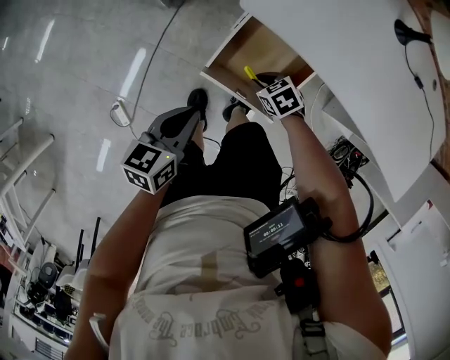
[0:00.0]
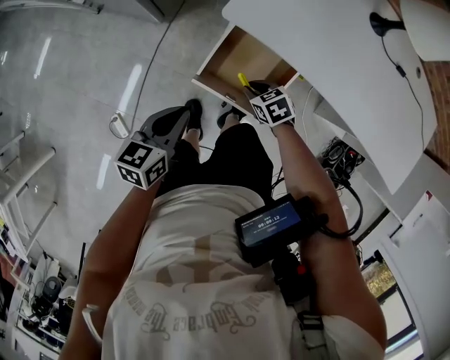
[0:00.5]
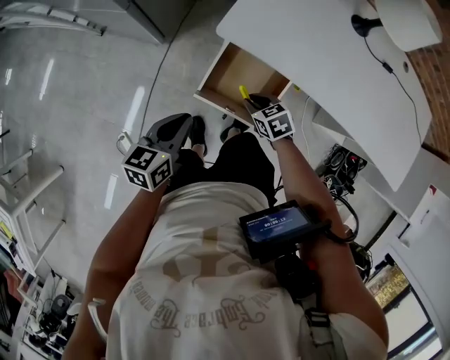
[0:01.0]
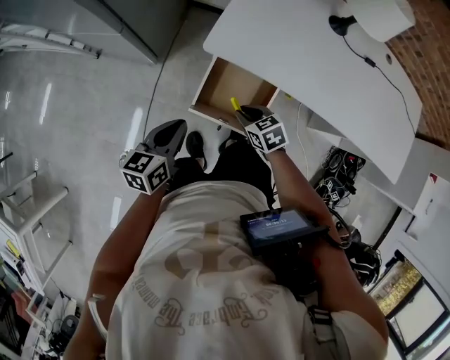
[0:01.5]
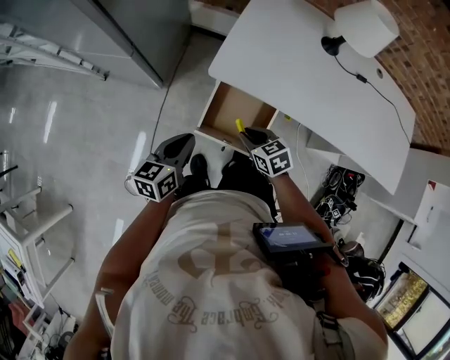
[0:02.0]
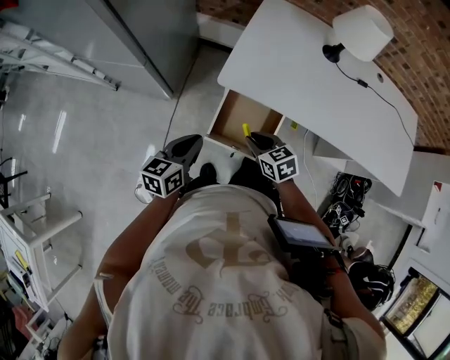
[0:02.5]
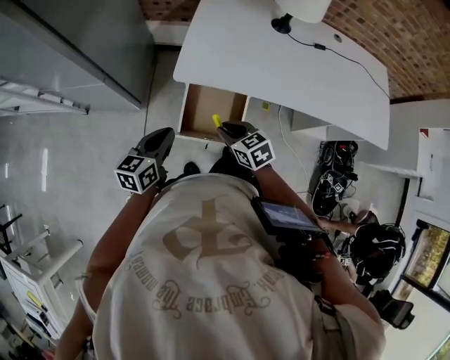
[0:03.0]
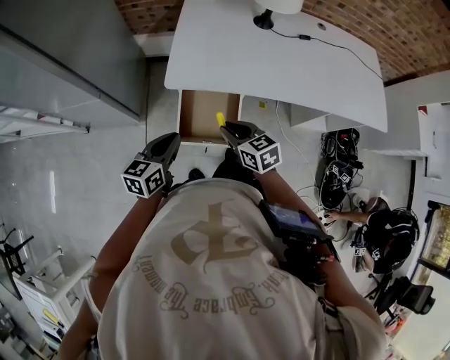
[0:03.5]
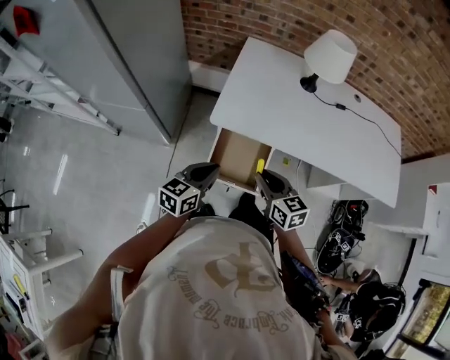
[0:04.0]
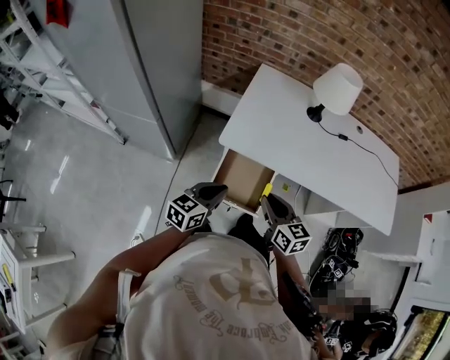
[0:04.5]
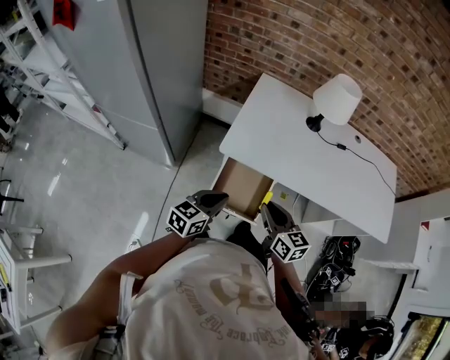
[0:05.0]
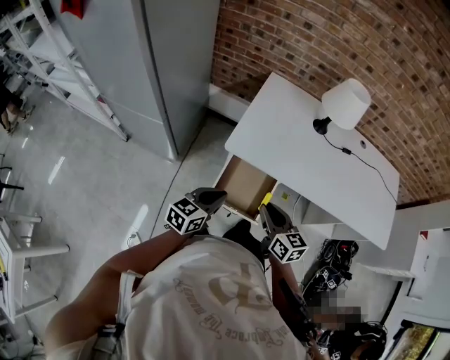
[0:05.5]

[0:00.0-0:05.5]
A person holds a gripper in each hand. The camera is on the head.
0:00.0 to 0:02.0: The left gripper is displaced upward by roughly 10 cm. Meanwhile the right gripper is displaced upward by roughly 15 cm, and rotates about 30 degrees.
0:02.0 to 0:03.5: The left gripper ends up some 5 cm from where it was, while the right gripper travels upward by roughly 10 cm, and rotates roughly 20 degrees.
0:03.5 to 0:05.5: The right gripper heads upward, covering roughly 5 cm.

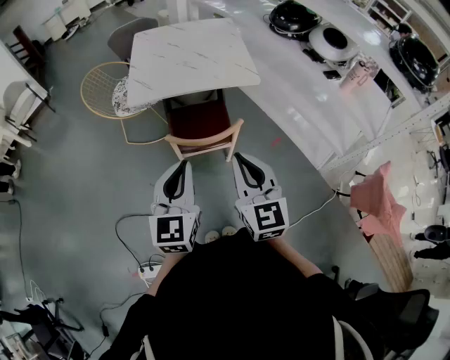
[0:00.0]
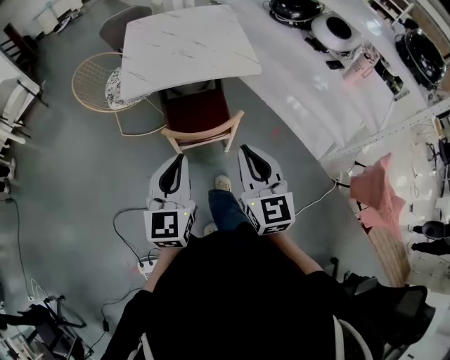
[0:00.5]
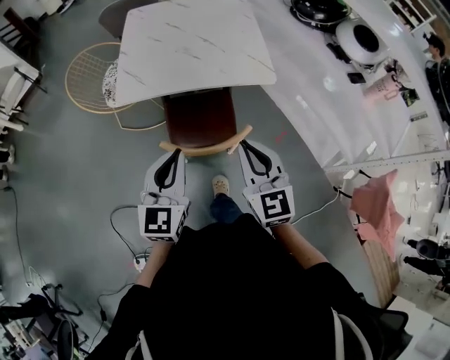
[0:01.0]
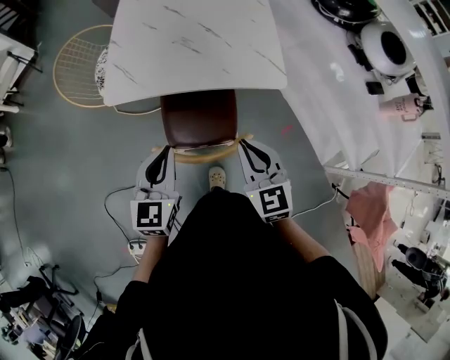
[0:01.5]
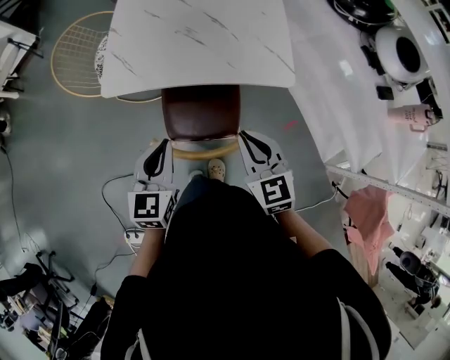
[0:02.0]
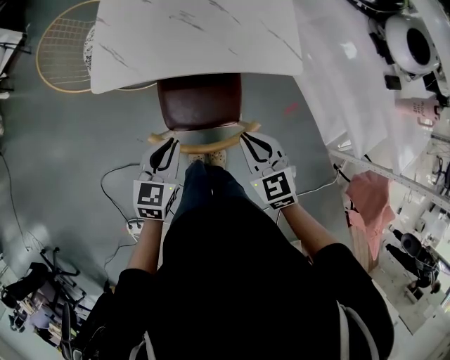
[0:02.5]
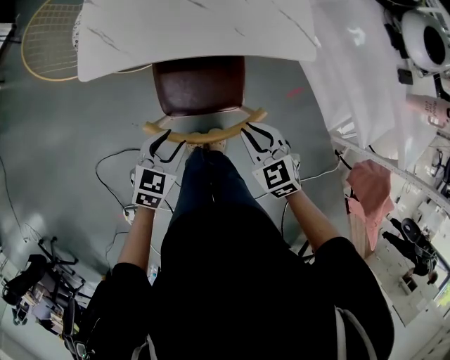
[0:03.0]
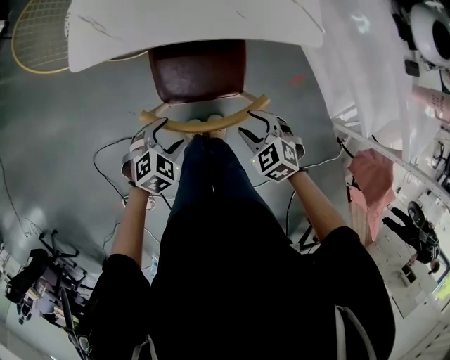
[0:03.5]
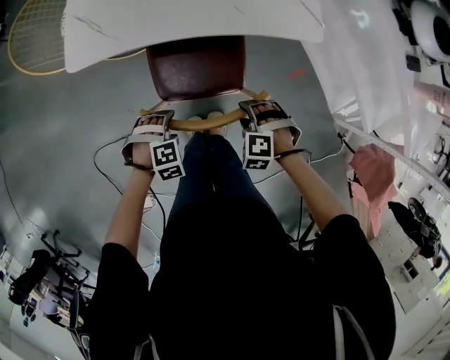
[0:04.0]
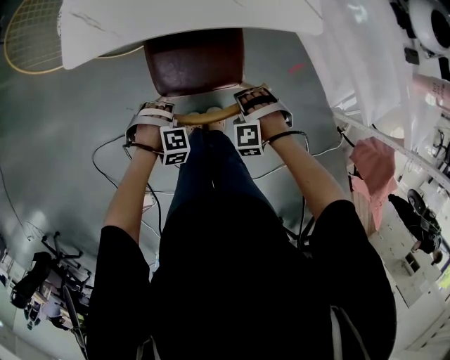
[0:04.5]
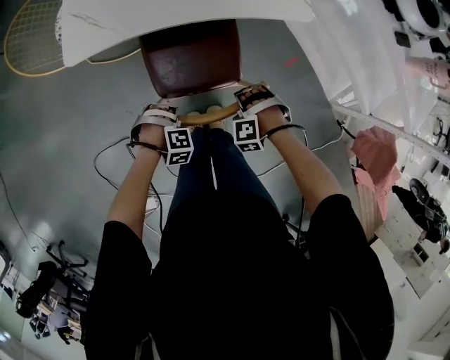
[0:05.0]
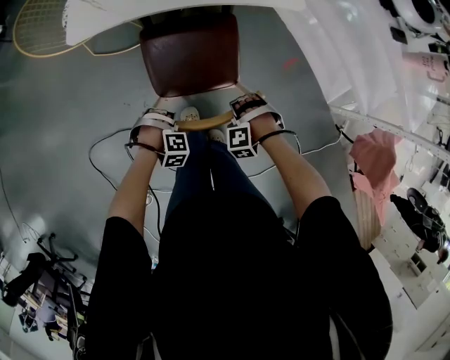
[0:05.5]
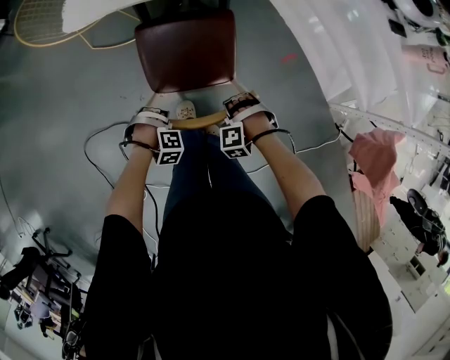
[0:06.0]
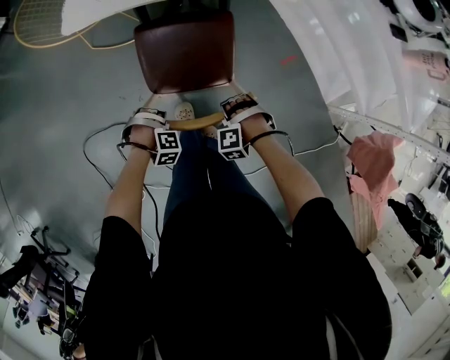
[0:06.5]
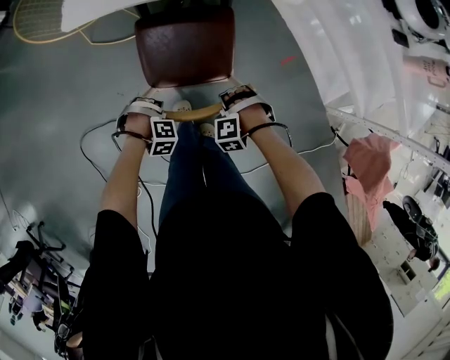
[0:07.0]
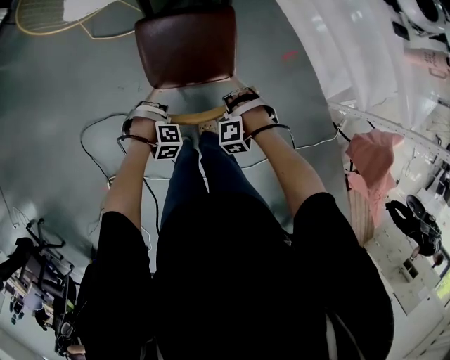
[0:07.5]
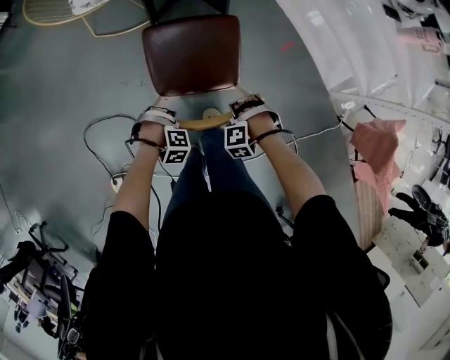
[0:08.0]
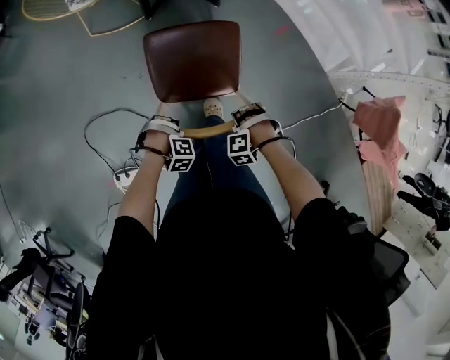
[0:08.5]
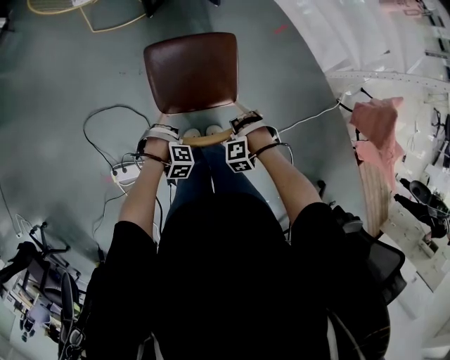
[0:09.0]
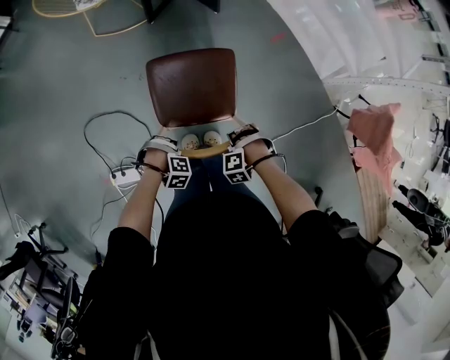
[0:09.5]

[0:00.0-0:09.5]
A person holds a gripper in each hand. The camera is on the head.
0:00.0 to 0:02.0: The two grippers go roughly 30 cm forward and downward. The right gripper turns by about 30 degrees.
0:02.0 to 0:04.0: The two grippers go roughly 30 cm downward. The left gripper tilts its fingers approximately 60 degrees downward, and opens; the right gripper angles its fingers downward, by approximately 50 degrees, and opens up.
0:04.0 to 0:05.5: The left gripper changes place by about 10 cm, turns by some 20 degrees, and closes. The right gripper changes place by roughly 10 cm, and changes its angle by roughly 20 degrees.
0:05.5 to 0:07.5: The left gripper changes place by approximately 5 cm.
0:07.5 to 0:09.5: The left gripper changes place by some 30 cm. Meanwhile the right gripper changes place by roughly 30 cm.

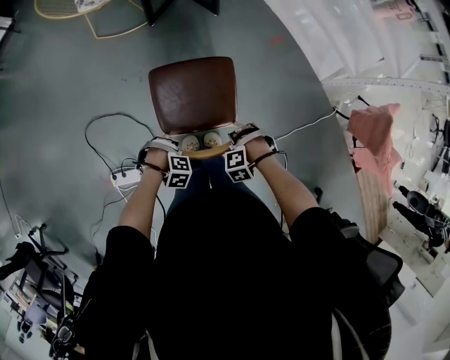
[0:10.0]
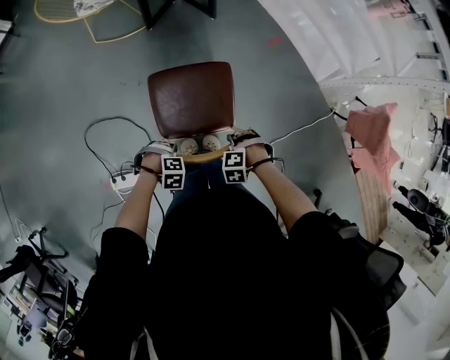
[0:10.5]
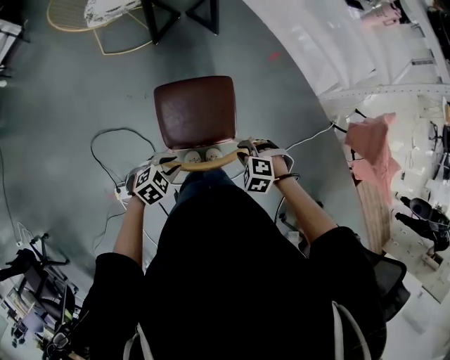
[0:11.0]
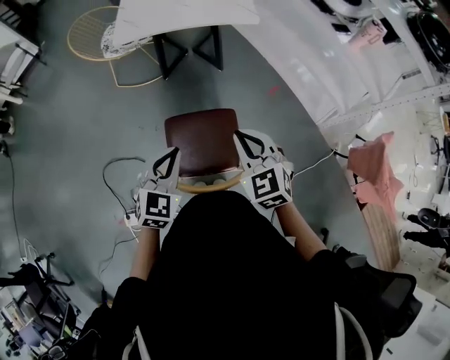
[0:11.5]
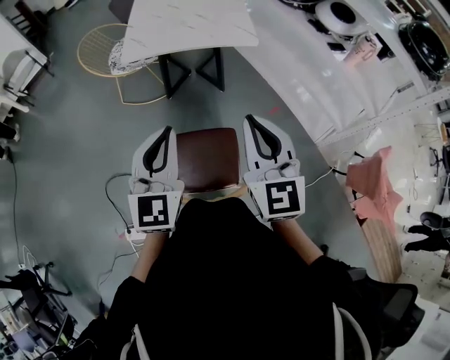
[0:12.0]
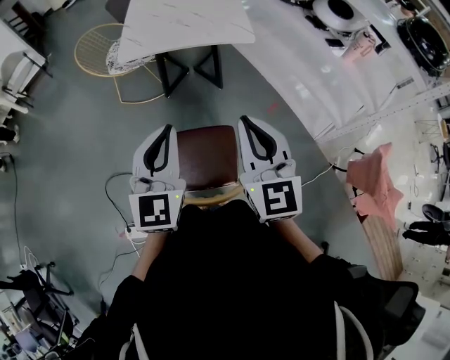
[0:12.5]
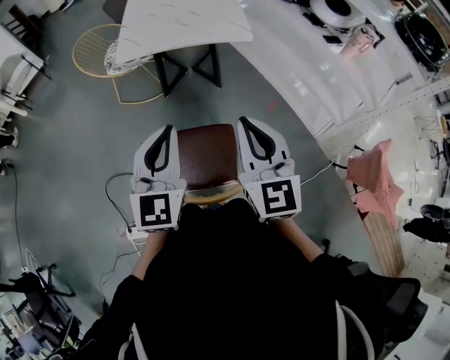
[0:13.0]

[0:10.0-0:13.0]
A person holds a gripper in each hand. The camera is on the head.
0:10.0 to 0:11.5: Both grippers move upward, approximately 35 cm. The left gripper points its fingers some 60 degrees further upward. The right gripper tips its fingers upward by some 60 degrees, and closes its fingers.
0:11.5 to 0:13.0: The grippers both shift upward by some 15 cm. The right gripper turns by approximately 30 degrees; the left gripper swivels approximately 30 degrees.

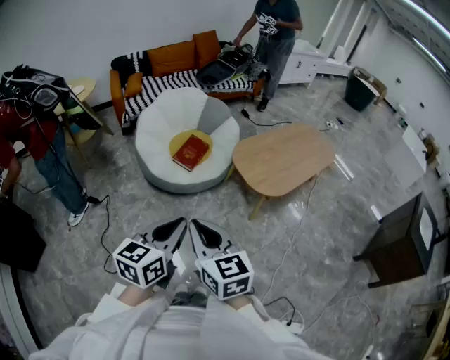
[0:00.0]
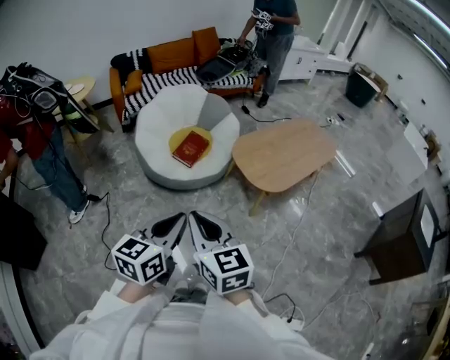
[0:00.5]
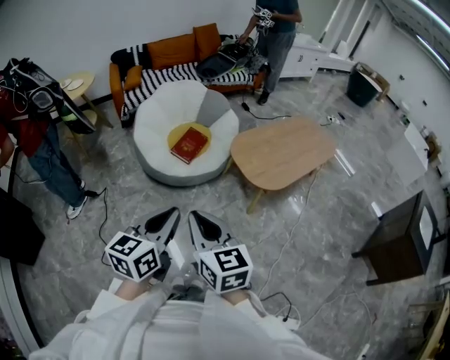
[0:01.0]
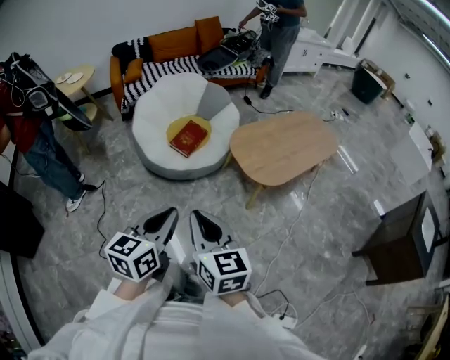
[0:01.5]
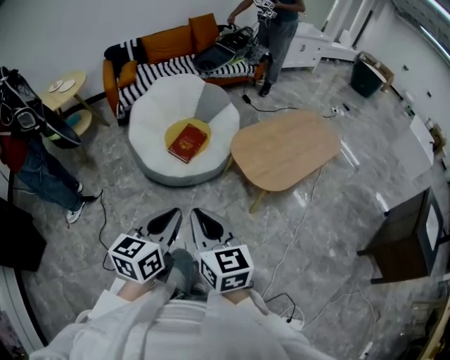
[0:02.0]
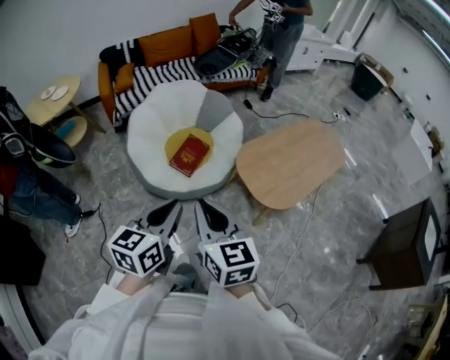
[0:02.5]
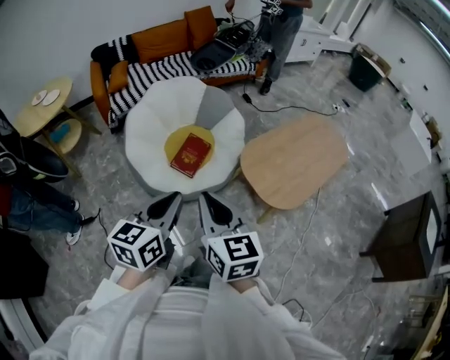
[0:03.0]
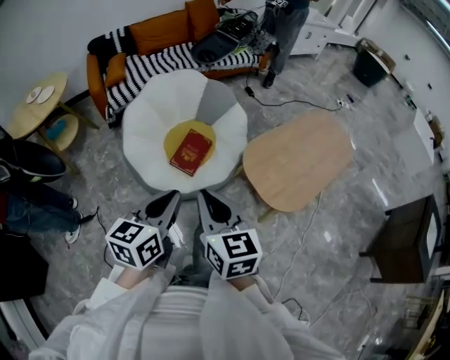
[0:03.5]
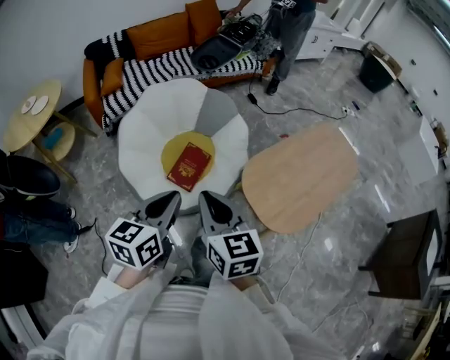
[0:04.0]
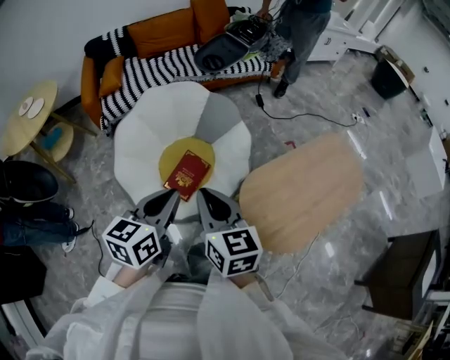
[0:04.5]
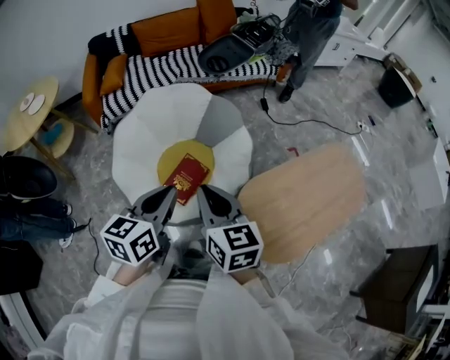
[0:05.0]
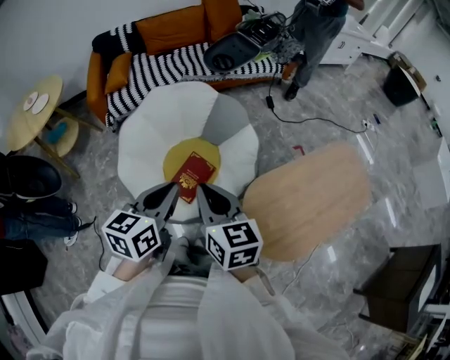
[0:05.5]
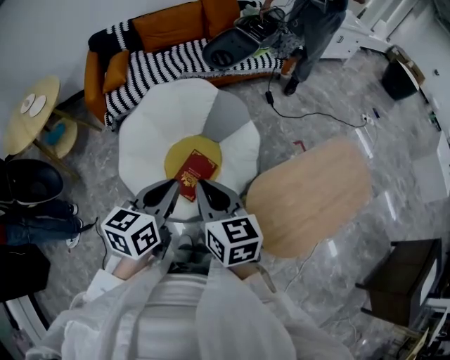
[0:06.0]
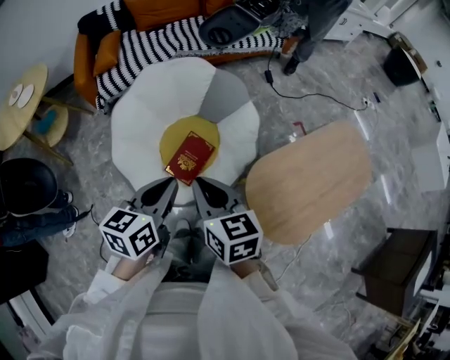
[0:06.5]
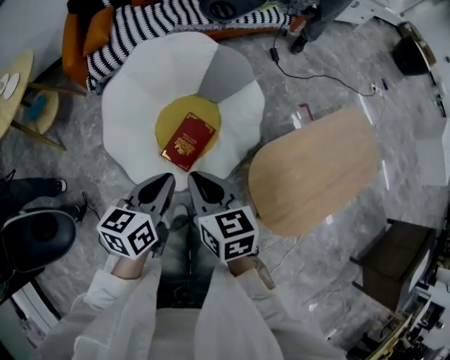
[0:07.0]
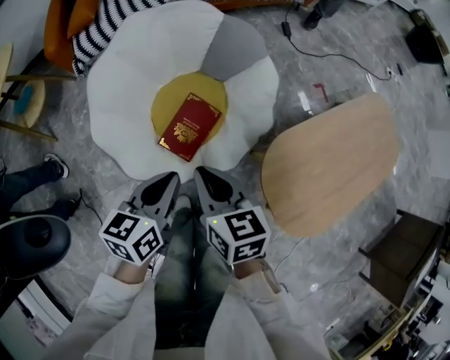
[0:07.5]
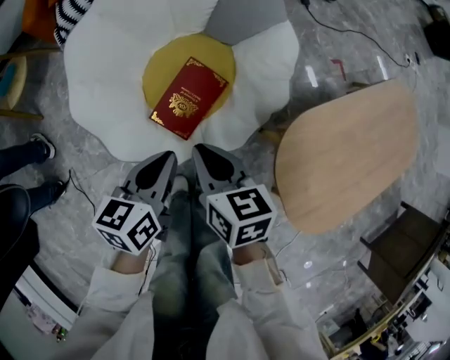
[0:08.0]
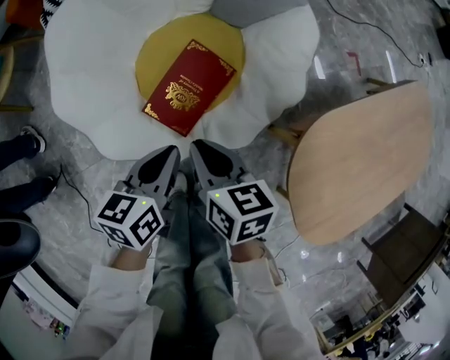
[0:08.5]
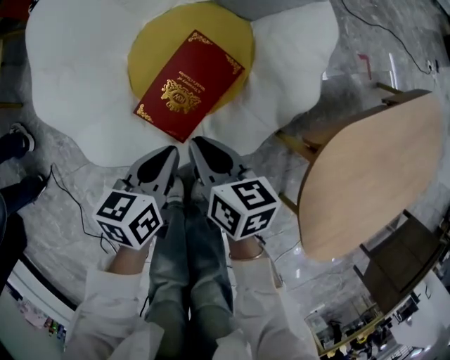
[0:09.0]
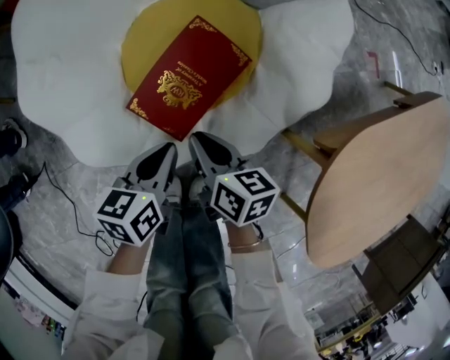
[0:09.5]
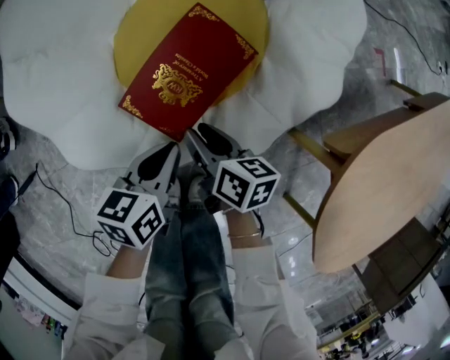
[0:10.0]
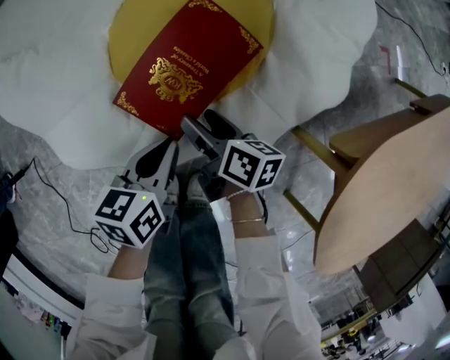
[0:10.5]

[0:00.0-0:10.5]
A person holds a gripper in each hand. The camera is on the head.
0:00.0 to 0:02.0: Both grippers move forward, about 5 cm.
0:02.0 to 0:04.0: Both grippers move forward, roughly 35 cm.
0:04.0 to 0:06.5: The grippers both shift forward by approximately 15 cm.
0:06.5 to 0:08.5: The grippers both shift downward by approximately 40 cm. The right gripper rotates roughly 20 degrees.
0:08.5 to 0:10.5: The grippers both shift downward by approximately 25 cm. The right gripper swivels approximately 30 degrees, and opens its fingers.
